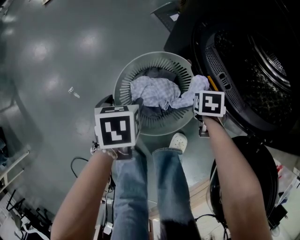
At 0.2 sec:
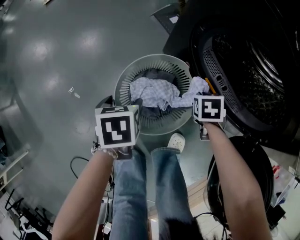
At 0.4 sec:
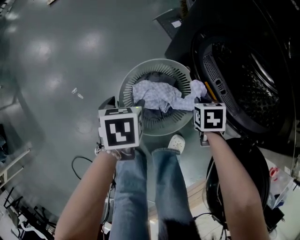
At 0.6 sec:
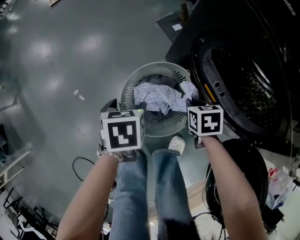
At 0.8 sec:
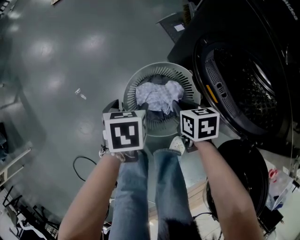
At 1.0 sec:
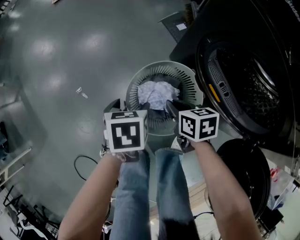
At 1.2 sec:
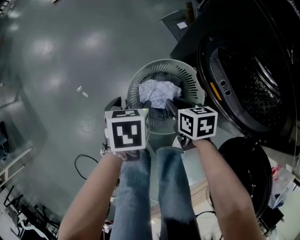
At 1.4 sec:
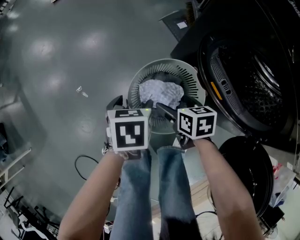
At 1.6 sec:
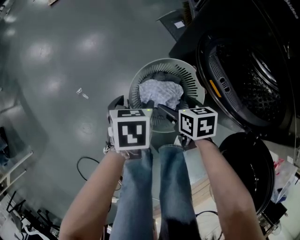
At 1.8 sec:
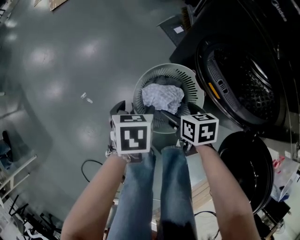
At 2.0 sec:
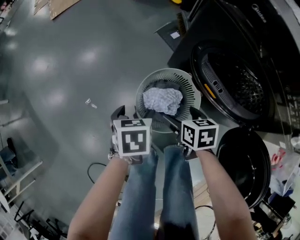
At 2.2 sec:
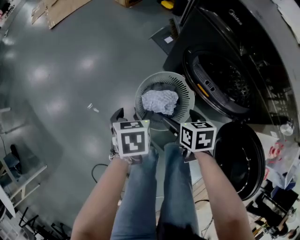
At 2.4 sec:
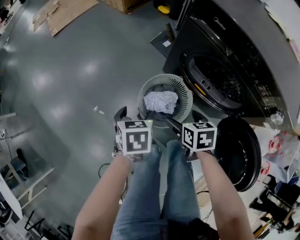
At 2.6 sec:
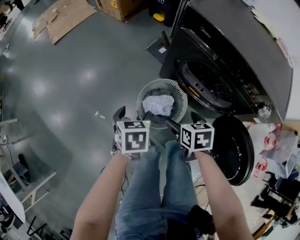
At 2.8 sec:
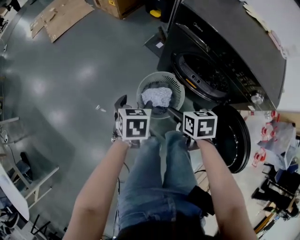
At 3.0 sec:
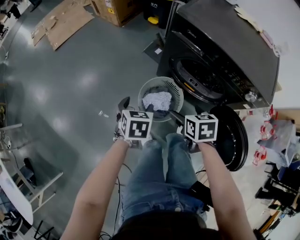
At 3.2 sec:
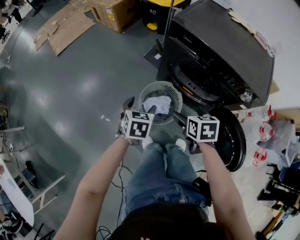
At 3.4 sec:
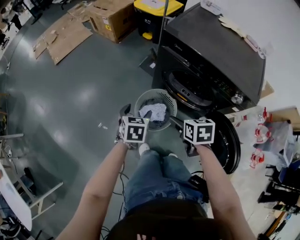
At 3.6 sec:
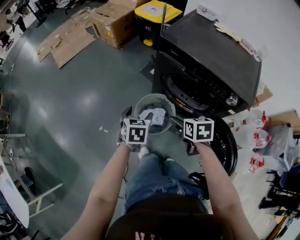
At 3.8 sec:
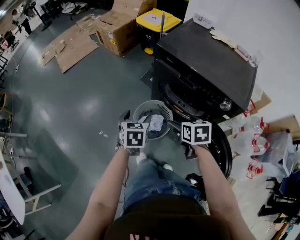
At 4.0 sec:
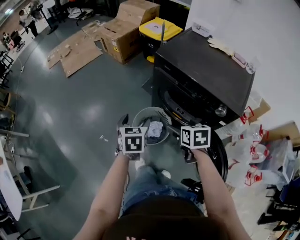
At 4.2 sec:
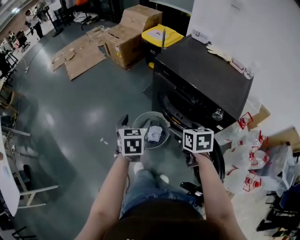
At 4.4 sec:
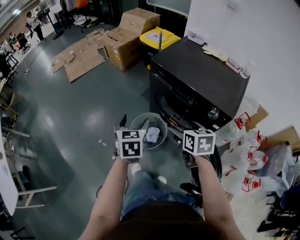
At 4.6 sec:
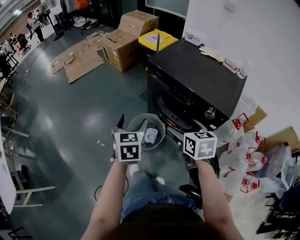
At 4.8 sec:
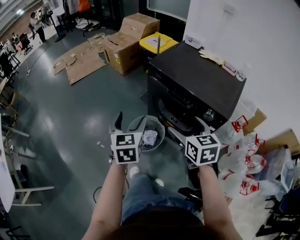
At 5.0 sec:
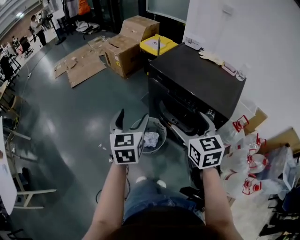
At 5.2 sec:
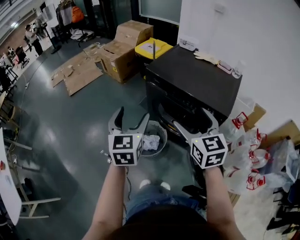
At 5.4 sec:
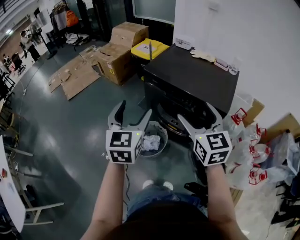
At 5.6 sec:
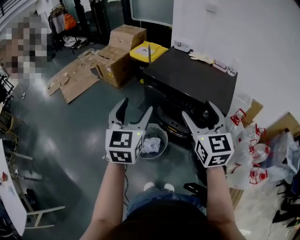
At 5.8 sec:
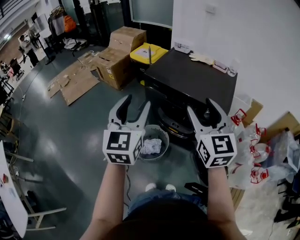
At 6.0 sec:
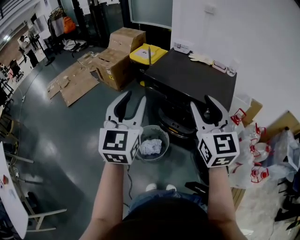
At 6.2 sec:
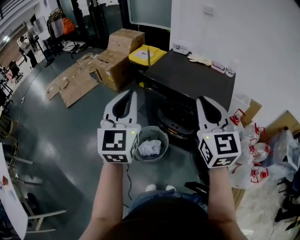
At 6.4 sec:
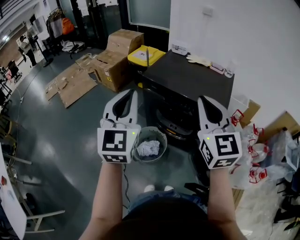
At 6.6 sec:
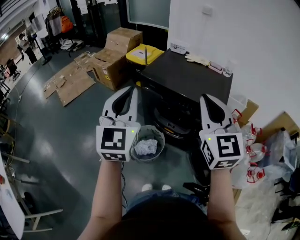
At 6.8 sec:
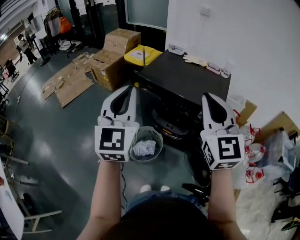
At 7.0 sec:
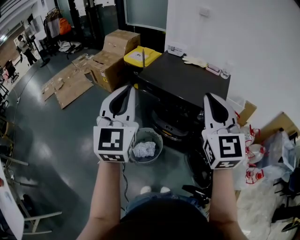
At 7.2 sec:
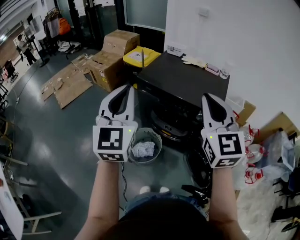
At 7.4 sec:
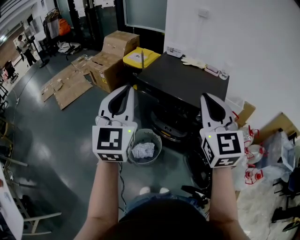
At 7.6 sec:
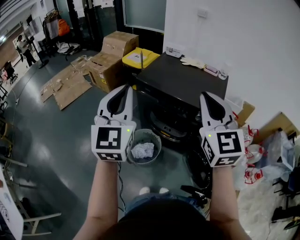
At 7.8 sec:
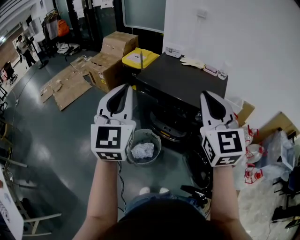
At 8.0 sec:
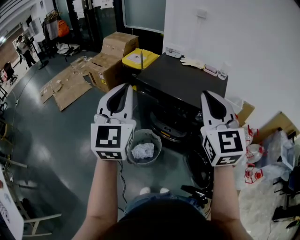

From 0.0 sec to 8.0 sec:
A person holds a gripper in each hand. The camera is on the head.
From 0.0 sec to 1.6 sec: The left gripper changes place by roughly 5 cm. Meanwhile the right gripper shifts by roughly 20 cm, swivels approximately 30 degrees, and opens its fingers.
From 1.6 sec to 3.2 sec: The two grippers go about 35 cm upward. The left gripper turns by some 30 degrees, while the right gripper changes its angle by about 20 degrees.
From 3.2 sec to 4.8 sec: The left gripper travels upward by some 25 cm, and swivels approximately 30 degrees. Meanwhile the right gripper moves upward and to the right, roughly 25 cm, and changes its angle by about 30 degrees.
From 4.8 sec to 6.4 sec: Both grippers travel together upward, approximately 20 cm. The left gripper rotates roughly 40 degrees, and closes its fingers; the right gripper rotates about 40 degrees, and closes its fingers.
From 6.4 sec to 8.0 sec: There are only small adjustments of the grippers.

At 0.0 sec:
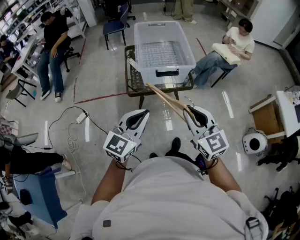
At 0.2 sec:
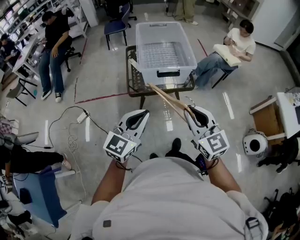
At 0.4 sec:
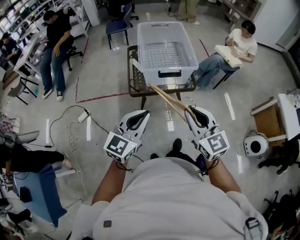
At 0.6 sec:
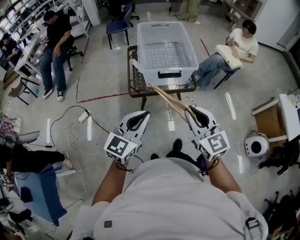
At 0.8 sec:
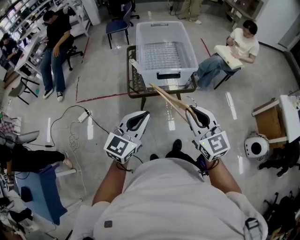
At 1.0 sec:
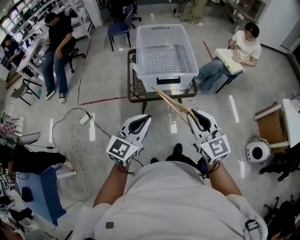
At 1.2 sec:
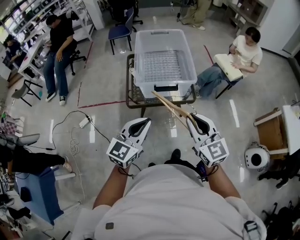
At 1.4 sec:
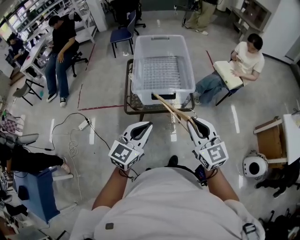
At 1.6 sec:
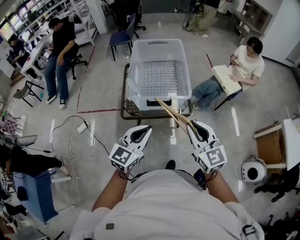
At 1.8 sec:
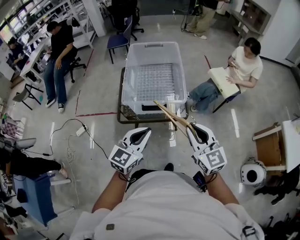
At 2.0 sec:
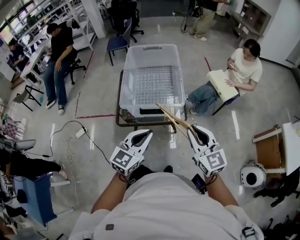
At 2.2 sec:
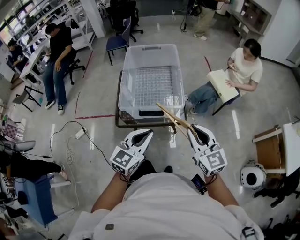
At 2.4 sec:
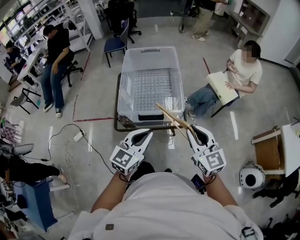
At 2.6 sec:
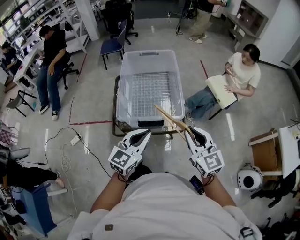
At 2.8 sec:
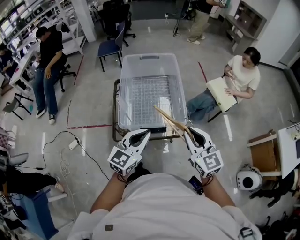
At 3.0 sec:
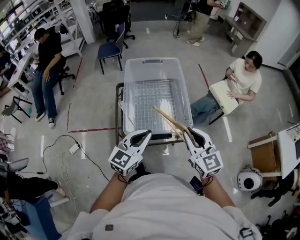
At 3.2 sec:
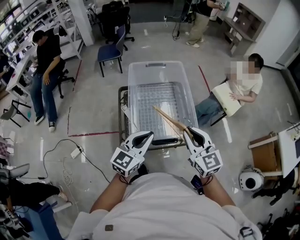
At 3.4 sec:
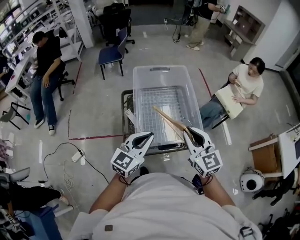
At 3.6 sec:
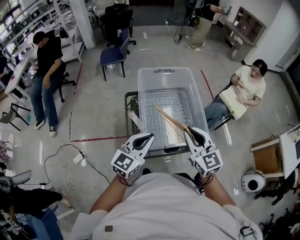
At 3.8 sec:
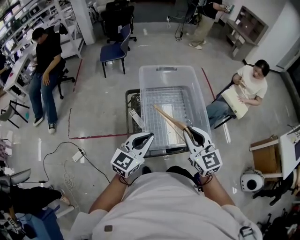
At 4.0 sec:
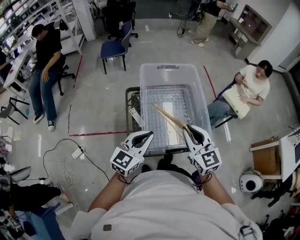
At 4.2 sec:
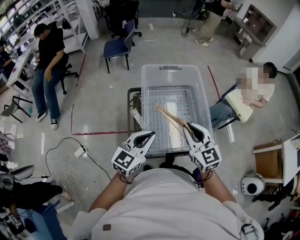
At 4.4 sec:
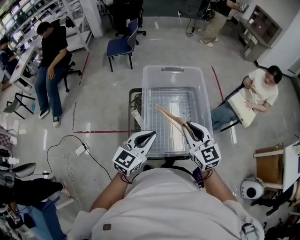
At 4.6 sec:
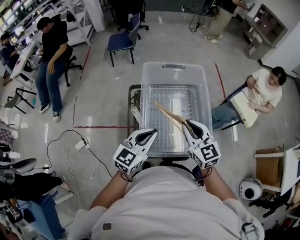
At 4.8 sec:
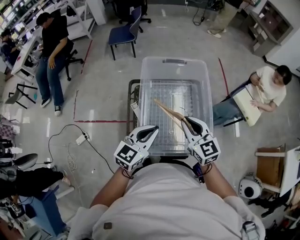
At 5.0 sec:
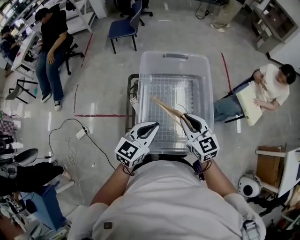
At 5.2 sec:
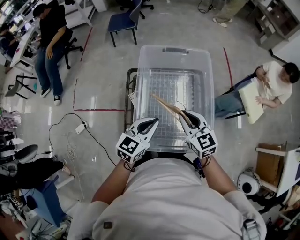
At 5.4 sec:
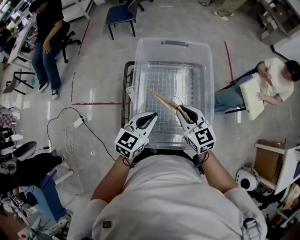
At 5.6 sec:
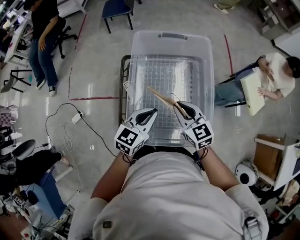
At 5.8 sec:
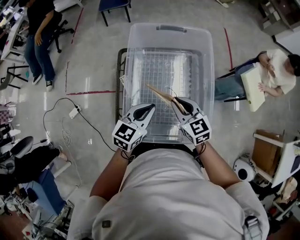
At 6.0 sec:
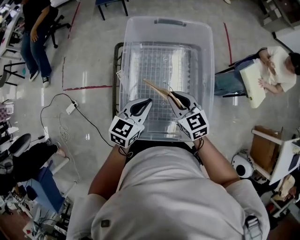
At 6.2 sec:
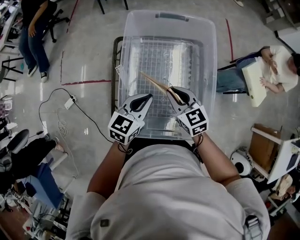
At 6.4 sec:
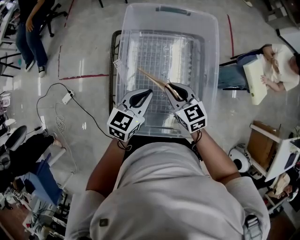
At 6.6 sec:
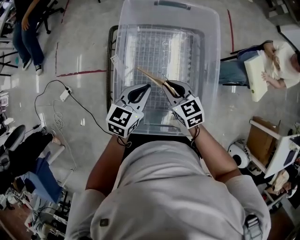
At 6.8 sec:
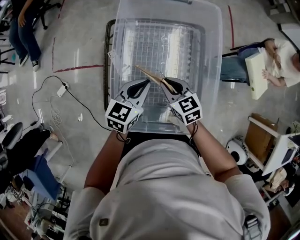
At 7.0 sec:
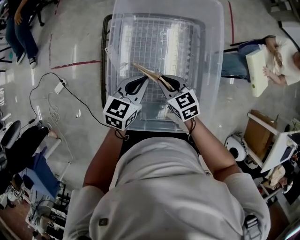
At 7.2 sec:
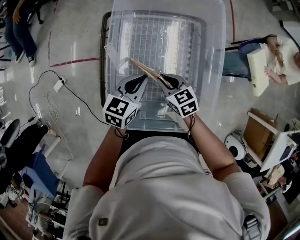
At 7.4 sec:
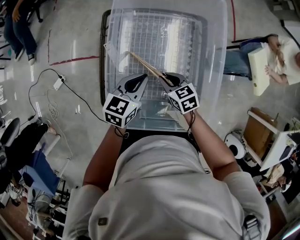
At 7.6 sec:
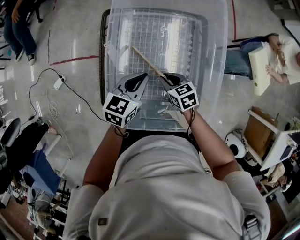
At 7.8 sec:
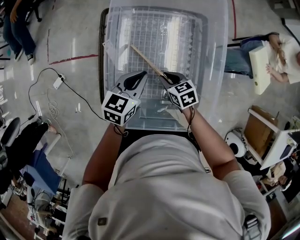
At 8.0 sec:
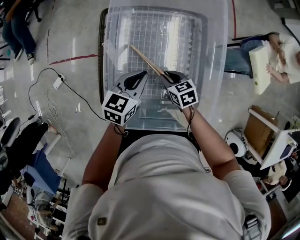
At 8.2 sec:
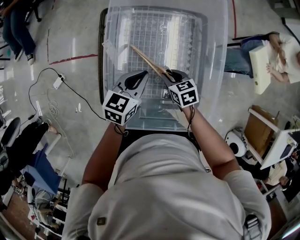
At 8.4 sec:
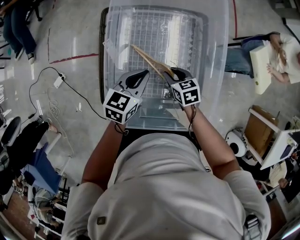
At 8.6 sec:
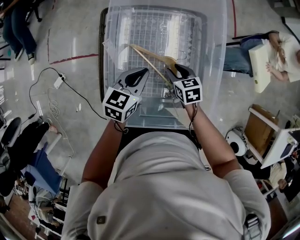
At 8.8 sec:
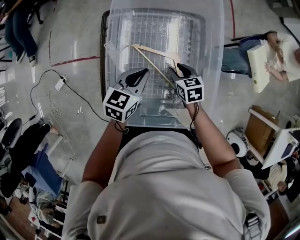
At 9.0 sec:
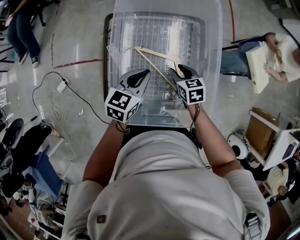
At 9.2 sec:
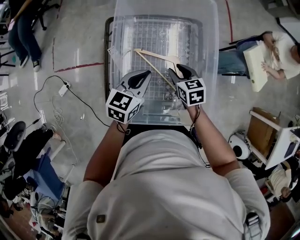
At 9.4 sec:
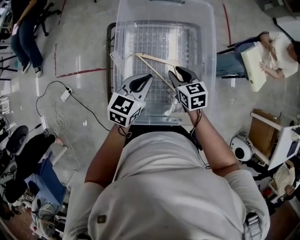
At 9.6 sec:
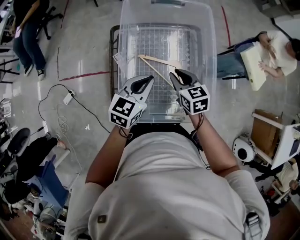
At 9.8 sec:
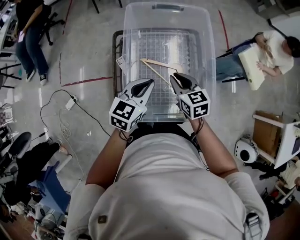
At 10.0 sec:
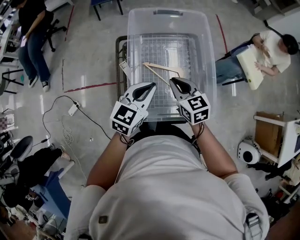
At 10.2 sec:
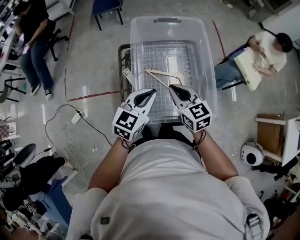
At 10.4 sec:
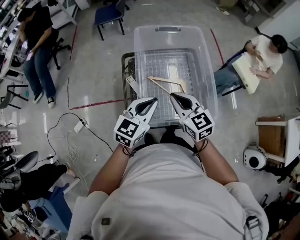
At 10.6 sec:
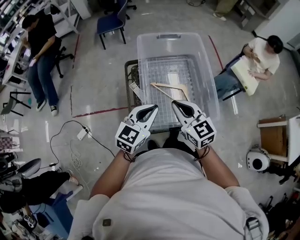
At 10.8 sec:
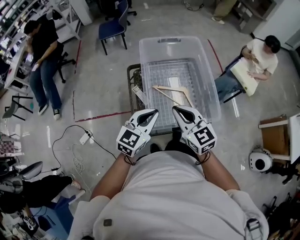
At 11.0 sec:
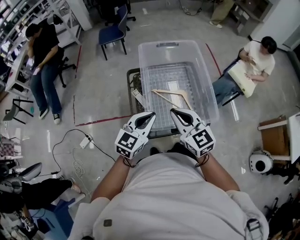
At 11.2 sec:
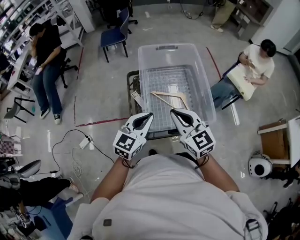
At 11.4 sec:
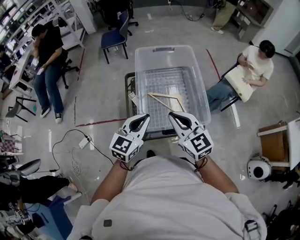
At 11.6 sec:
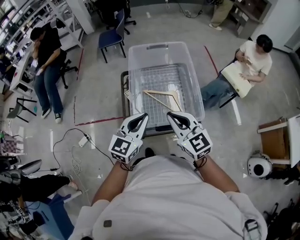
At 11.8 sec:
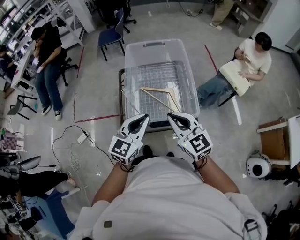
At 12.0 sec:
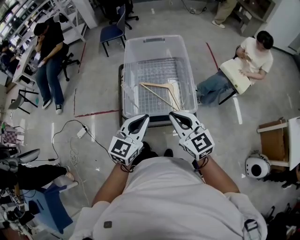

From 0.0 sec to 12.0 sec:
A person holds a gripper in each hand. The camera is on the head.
From 0.0 sec to 1.6 sec: The grippers both shift forward and to the right by approximately 20 cm.
From 1.6 sec to 3.0 sec: The grippers both shift forward by some 20 cm.
From 3.0 sec to 4.4 sec: Both grippers move forward and to the left, approximately 20 cm.
From 4.4 sec to 6.0 sec: Both grippers travel together downward and forward, some 20 cm. The right gripper rotates about 20 degrees.
From 6.0 sec to 7.6 sec: The right gripper goes approximately 20 cm downward, and turns by some 30 degrees, while the left gripper shifts some 10 cm downward.
From 7.6 sec to 9.0 sec: The right gripper heads to the right, covering about 5 cm, and opens up.
From 9.0 sec to 10.4 sec: The left gripper is displaced upward and backward by roughly 20 cm, and swivels some 20 degrees, while the right gripper goes about 30 cm upward, backward and to the left, swivels about 30 degrees, and closes up.
From 10.4 sec to 12.0 sec: The grippers both shift backward, to the right and upward by roughly 20 cm.

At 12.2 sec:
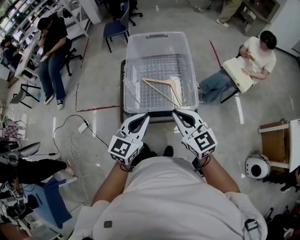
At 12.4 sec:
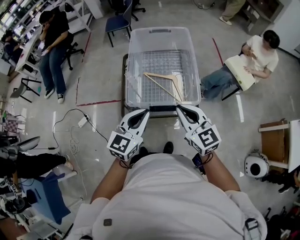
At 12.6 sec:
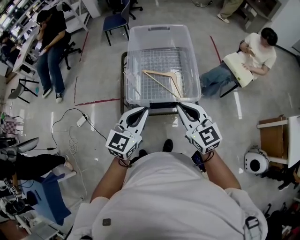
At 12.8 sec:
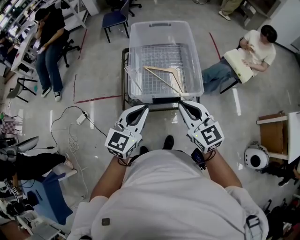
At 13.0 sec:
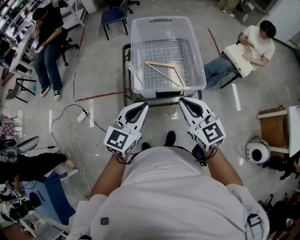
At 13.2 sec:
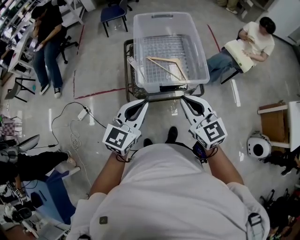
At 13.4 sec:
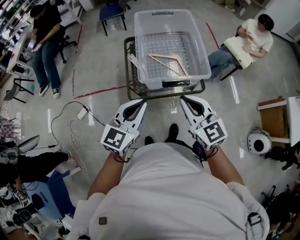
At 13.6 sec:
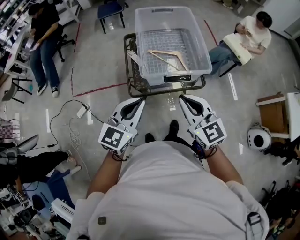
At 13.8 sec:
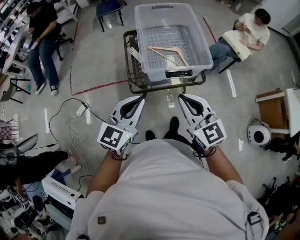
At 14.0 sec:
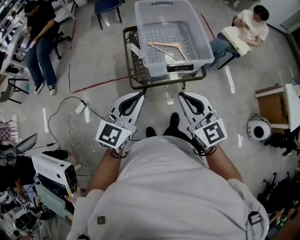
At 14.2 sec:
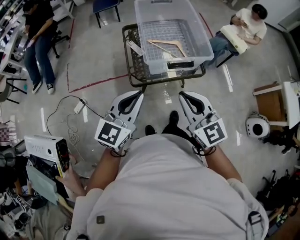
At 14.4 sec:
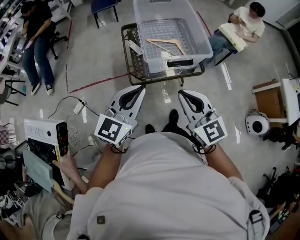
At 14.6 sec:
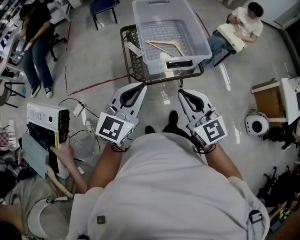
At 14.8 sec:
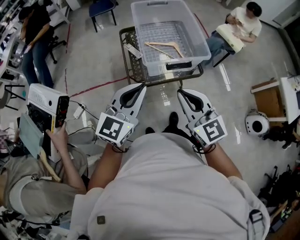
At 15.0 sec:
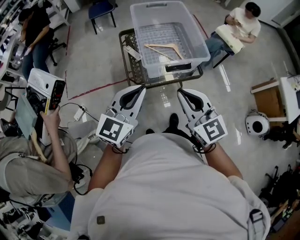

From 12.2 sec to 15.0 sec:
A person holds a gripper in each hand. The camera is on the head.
From 12.2 sec to 13.6 sec: The left gripper is displaced to the left and backward by about 20 cm; the right gripper is displaced backward and to the left by about 15 cm.
From 13.6 sec to 15.0 sec: The left gripper changes place by about 5 cm. The right gripper is displaced backward and to the left by about 5 cm.
